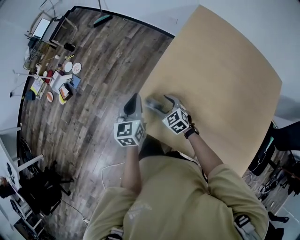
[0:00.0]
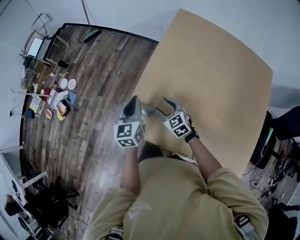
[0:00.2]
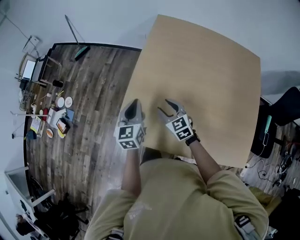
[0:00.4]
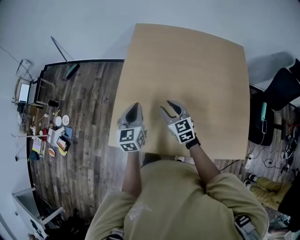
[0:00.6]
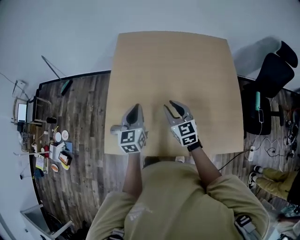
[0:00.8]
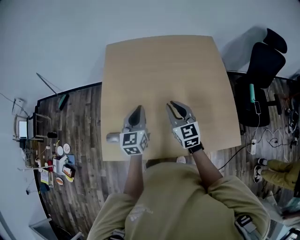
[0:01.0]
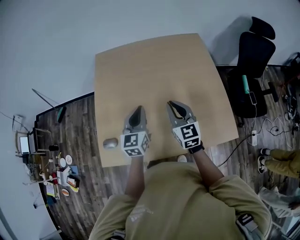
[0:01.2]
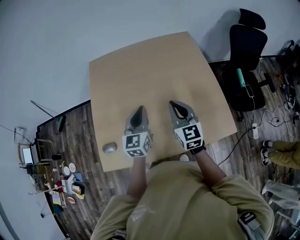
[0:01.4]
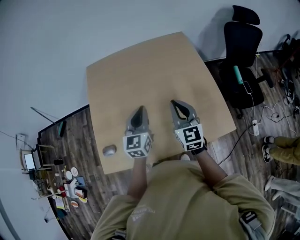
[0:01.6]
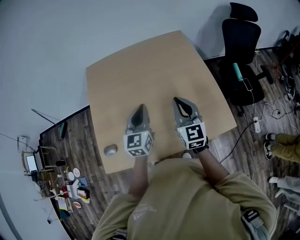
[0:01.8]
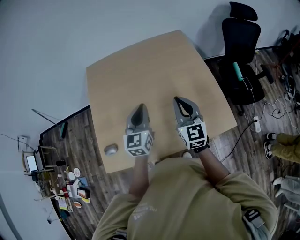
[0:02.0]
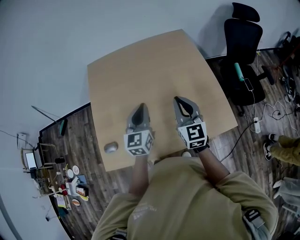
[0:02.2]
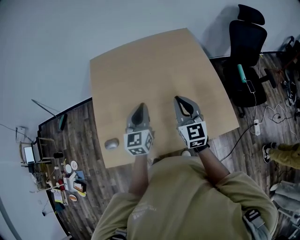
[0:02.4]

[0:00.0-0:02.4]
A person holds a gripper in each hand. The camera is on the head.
0:00.0 to 0:01.2: Both grippers are carried roughly 40 cm. The left gripper changes its angle by roughly 40 degrees, while the right gripper tilts its fingers about 30 degrees upward, and closes.
0:01.2 to 0:02.4: Both grippers move to the right, approximately 5 cm.

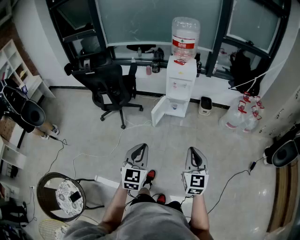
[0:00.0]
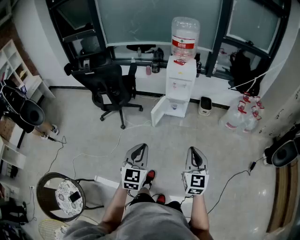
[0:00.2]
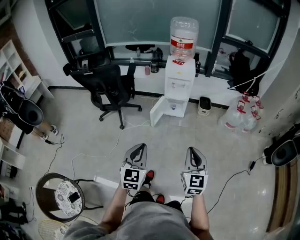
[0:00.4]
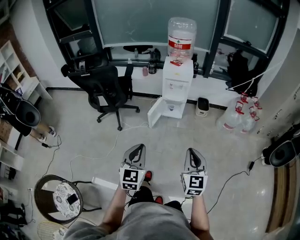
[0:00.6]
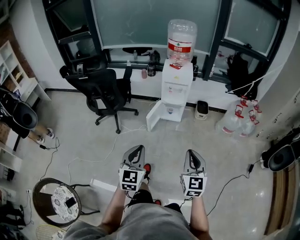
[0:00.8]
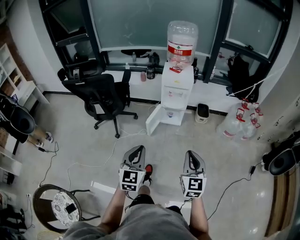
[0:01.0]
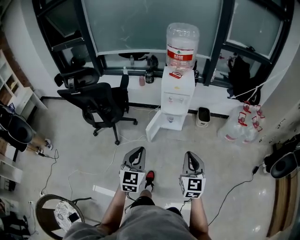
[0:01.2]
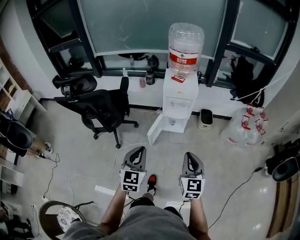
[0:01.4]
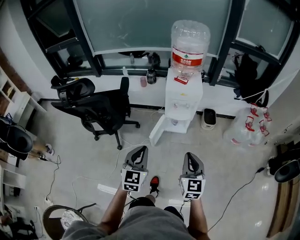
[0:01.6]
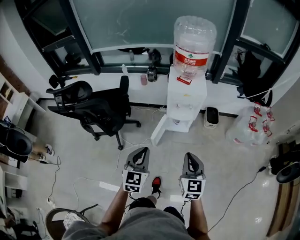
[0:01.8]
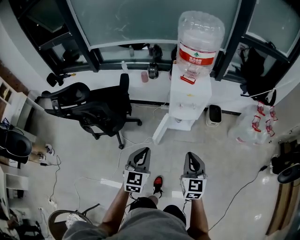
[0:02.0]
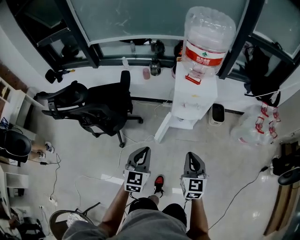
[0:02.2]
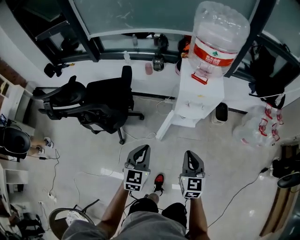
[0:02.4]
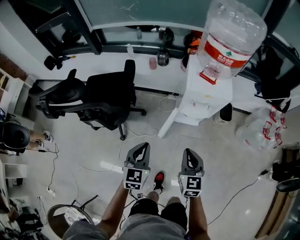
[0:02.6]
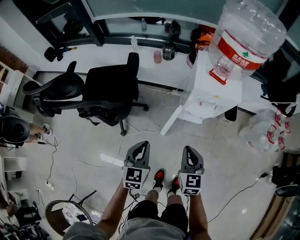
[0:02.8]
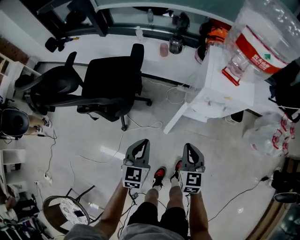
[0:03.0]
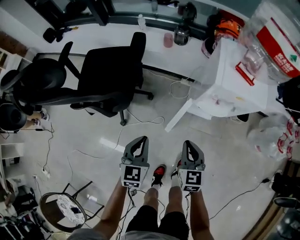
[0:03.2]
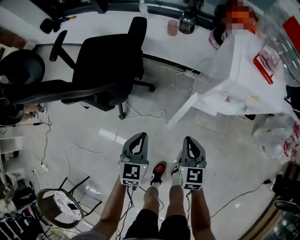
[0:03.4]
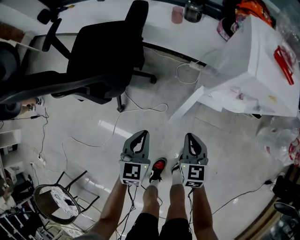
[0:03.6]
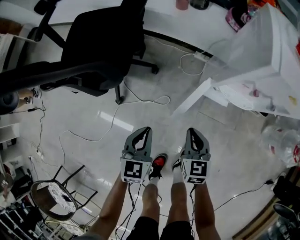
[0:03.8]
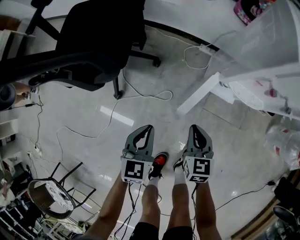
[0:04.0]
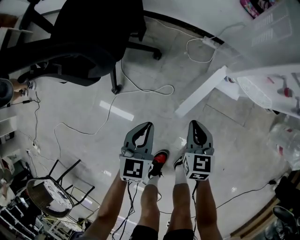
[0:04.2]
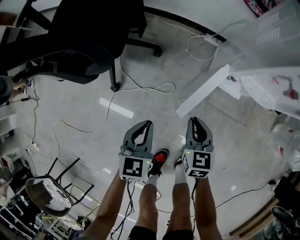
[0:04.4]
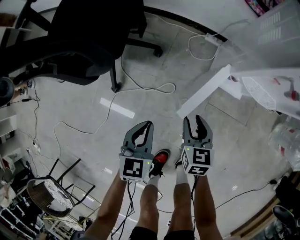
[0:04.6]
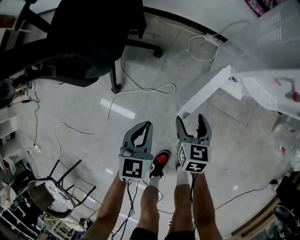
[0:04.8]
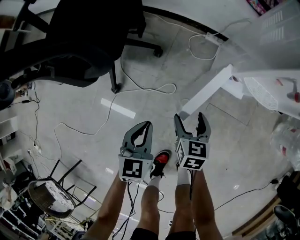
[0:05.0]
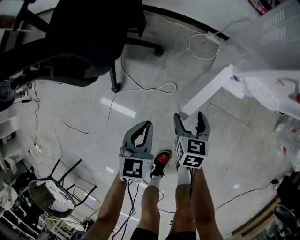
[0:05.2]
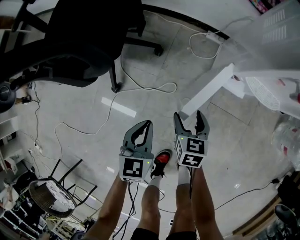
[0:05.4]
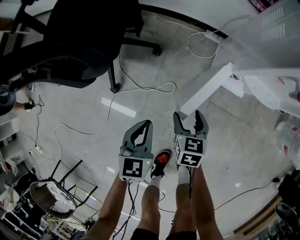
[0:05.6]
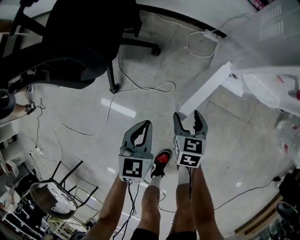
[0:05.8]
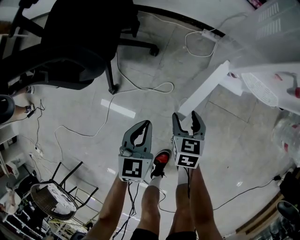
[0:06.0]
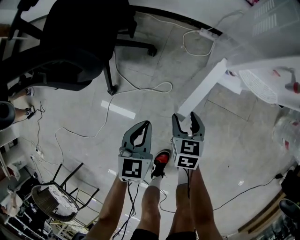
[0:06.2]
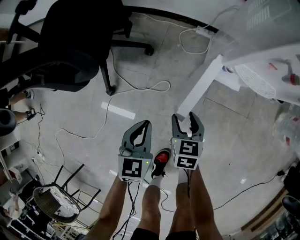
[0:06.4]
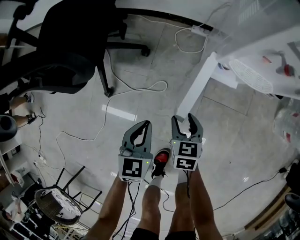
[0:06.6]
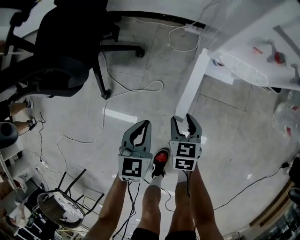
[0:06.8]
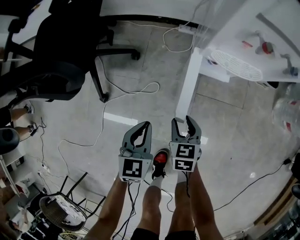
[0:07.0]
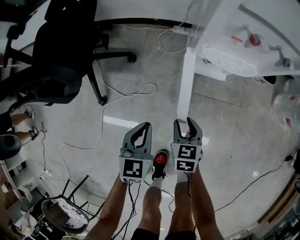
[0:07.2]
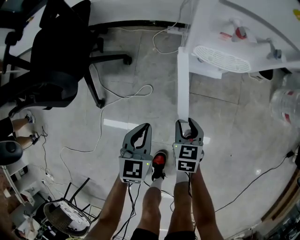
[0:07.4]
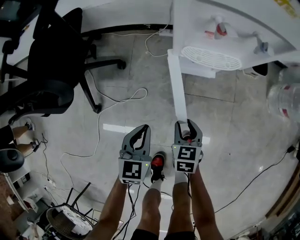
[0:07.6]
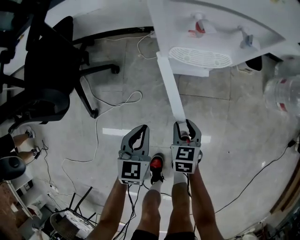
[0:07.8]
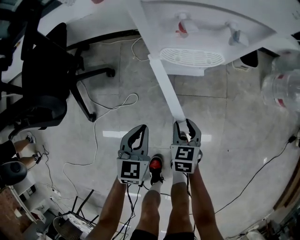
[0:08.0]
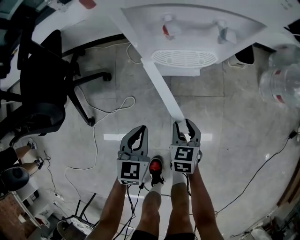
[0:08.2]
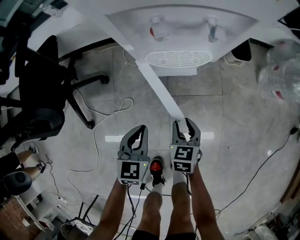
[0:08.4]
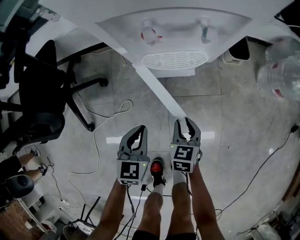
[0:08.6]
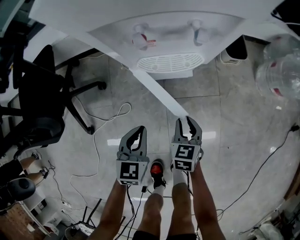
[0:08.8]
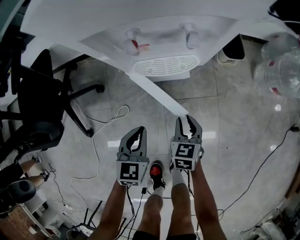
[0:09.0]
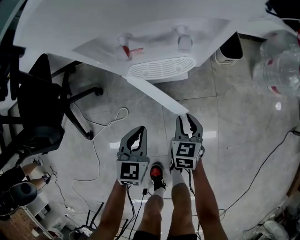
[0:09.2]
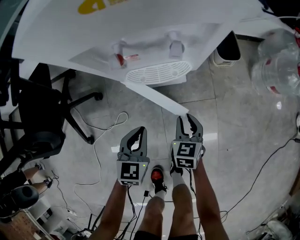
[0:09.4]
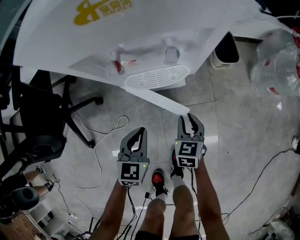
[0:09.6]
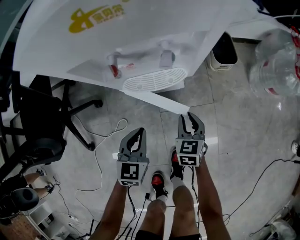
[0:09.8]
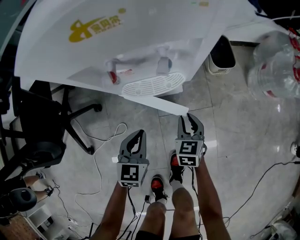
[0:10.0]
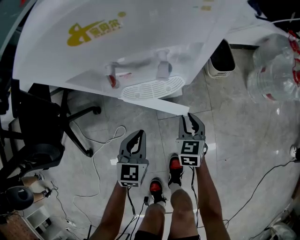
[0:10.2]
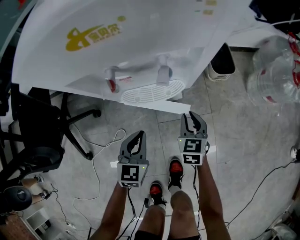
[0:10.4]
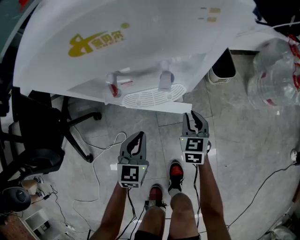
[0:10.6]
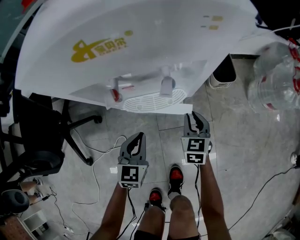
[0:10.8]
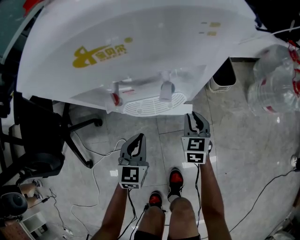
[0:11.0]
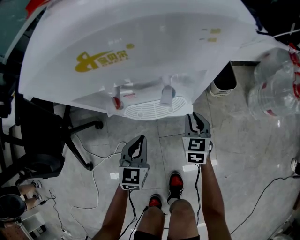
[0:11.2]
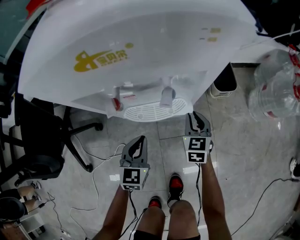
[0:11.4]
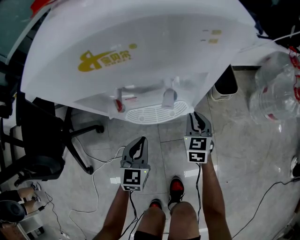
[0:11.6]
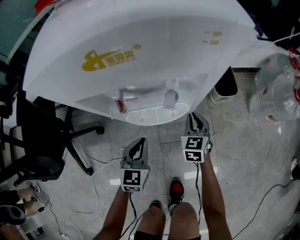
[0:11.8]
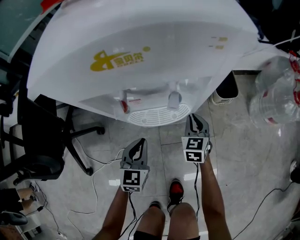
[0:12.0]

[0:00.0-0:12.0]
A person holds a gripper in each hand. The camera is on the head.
0:00.0 to 0:01.6: The two grippers go about 30 cm forward.
0:01.6 to 0:03.0: The left gripper is displaced downward, forward and to the left by roughly 30 cm; the right gripper goes approximately 35 cm forward, downward and to the left.
0:03.0 to 0:04.4: Both grippers move downward, roughly 35 cm.
0:04.4 to 0:06.0: The right gripper shifts about 5 cm downward, and opens.
0:06.0 to 0:07.6: The right gripper heads to the right and backward, covering about 15 cm, while the left gripper shifts some 15 cm to the right.
0:07.6 to 0:09.0: Both grippers travel together to the right and forward, roughly 15 cm.
0:09.0 to 0:10.4: The left gripper heads forward, covering roughly 10 cm. Meanwhile the right gripper shifts roughly 10 cm forward and to the right.
0:10.4 to 0:12.0: The left gripper shifts by some 5 cm; the right gripper moves forward, approximately 10 cm.

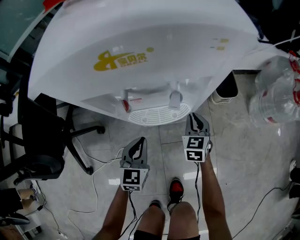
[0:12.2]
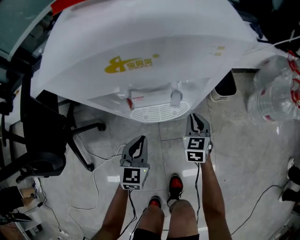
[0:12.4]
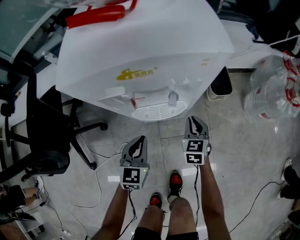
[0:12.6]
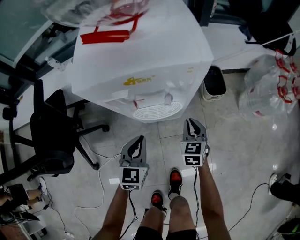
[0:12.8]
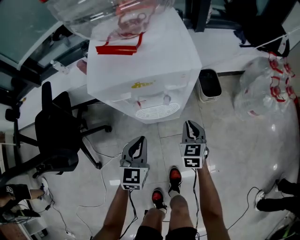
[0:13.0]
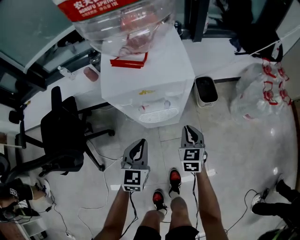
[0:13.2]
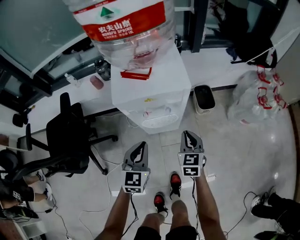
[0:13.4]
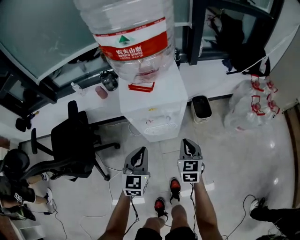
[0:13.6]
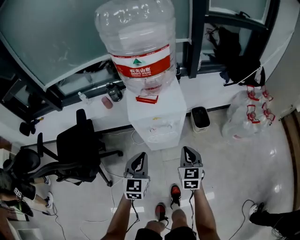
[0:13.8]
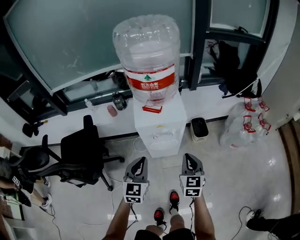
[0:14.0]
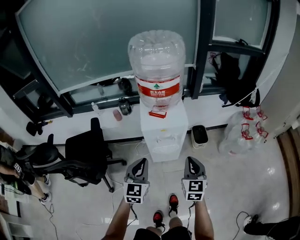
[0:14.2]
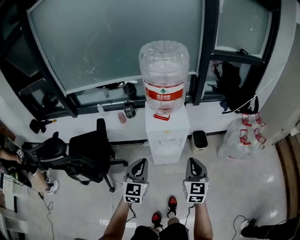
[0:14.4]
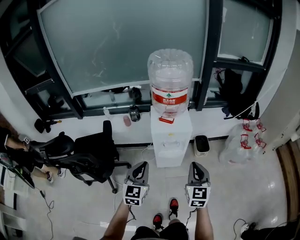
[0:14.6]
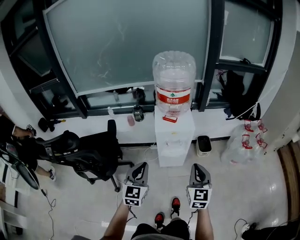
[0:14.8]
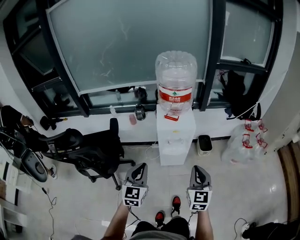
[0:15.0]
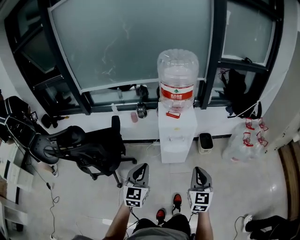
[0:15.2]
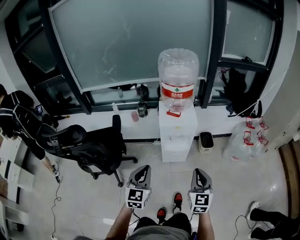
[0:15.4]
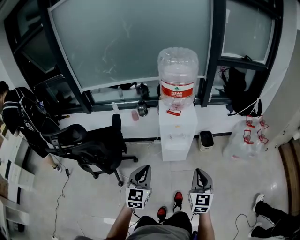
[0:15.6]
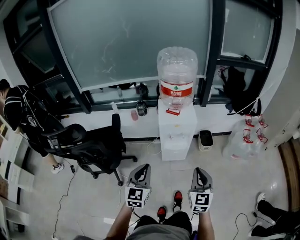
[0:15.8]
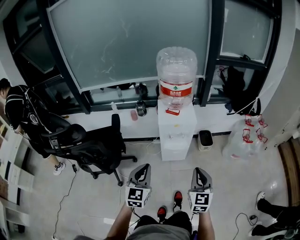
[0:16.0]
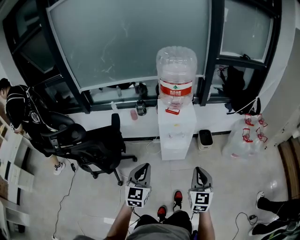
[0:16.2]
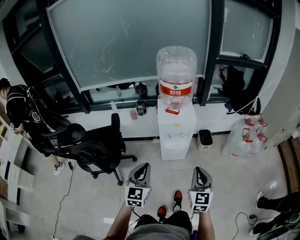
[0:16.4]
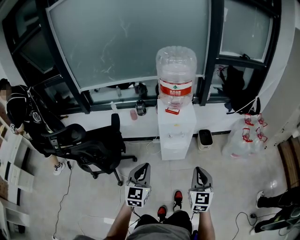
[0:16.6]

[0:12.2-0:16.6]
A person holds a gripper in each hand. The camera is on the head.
0:12.2 to 0:13.6: The grippers both shift upward by about 35 cm.
0:13.6 to 0:15.2: The grippers both shift upward and backward by roughly 35 cm.
0:15.2 to 0:16.6: The grippers make only small movements.

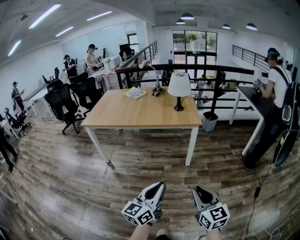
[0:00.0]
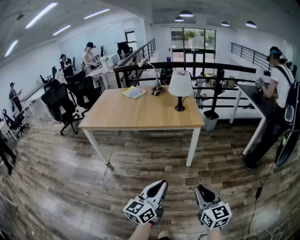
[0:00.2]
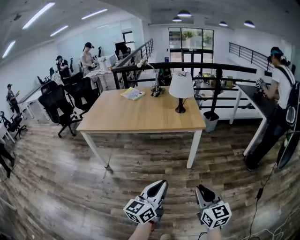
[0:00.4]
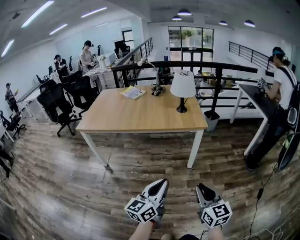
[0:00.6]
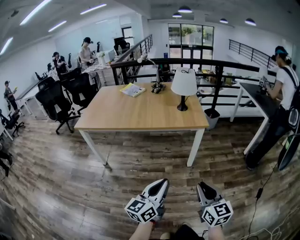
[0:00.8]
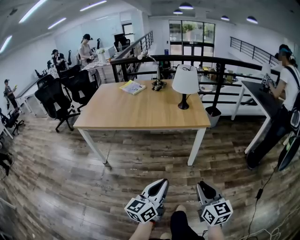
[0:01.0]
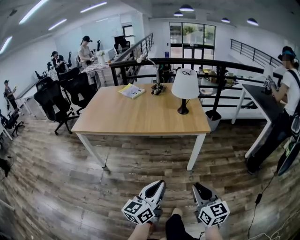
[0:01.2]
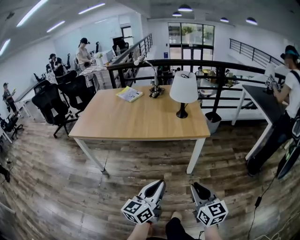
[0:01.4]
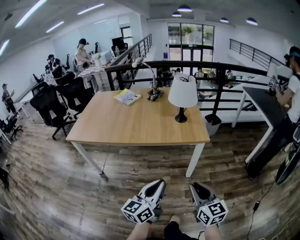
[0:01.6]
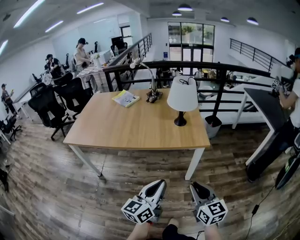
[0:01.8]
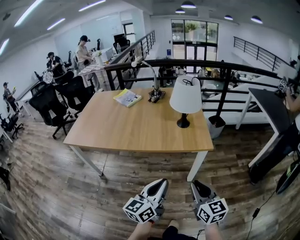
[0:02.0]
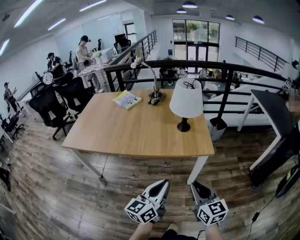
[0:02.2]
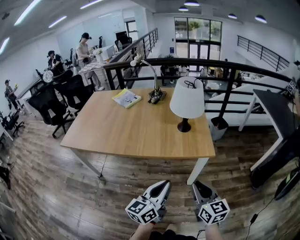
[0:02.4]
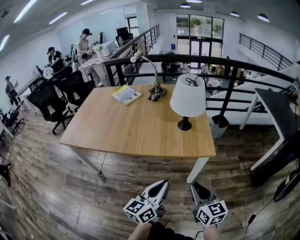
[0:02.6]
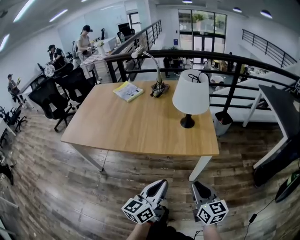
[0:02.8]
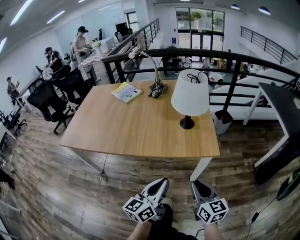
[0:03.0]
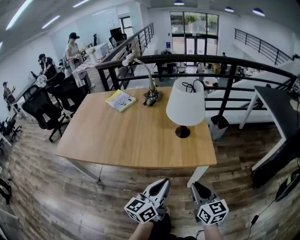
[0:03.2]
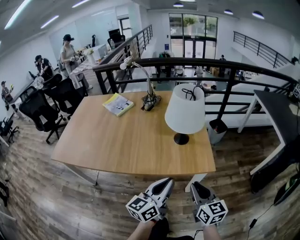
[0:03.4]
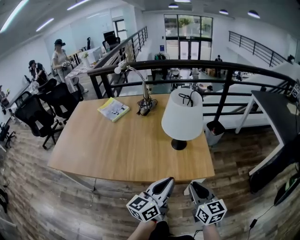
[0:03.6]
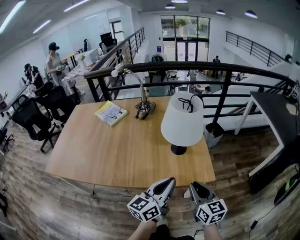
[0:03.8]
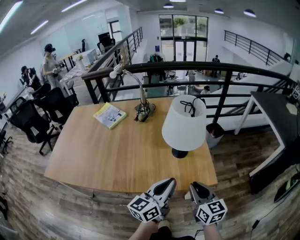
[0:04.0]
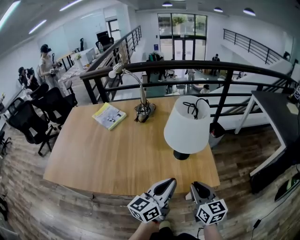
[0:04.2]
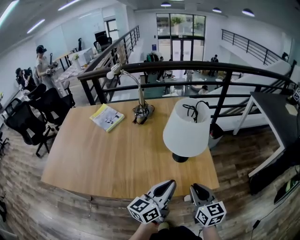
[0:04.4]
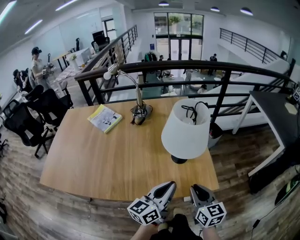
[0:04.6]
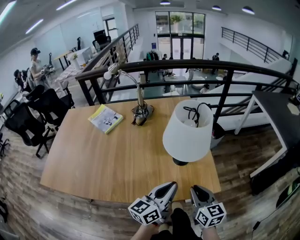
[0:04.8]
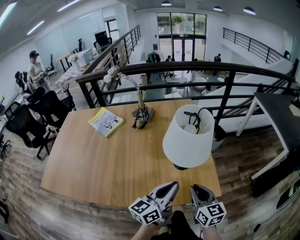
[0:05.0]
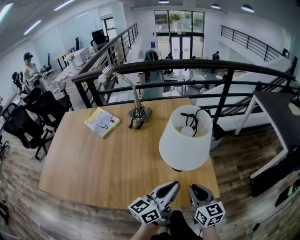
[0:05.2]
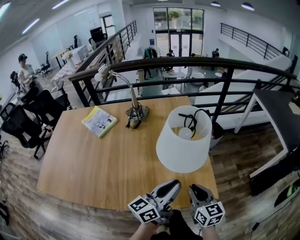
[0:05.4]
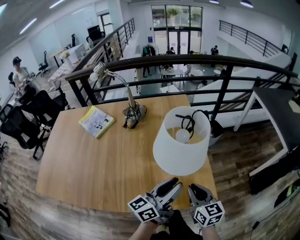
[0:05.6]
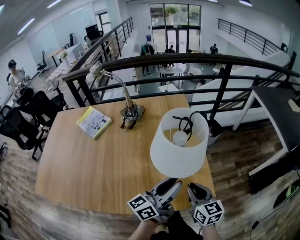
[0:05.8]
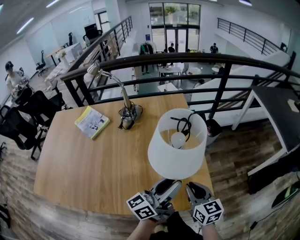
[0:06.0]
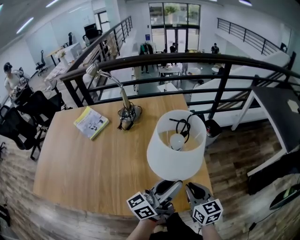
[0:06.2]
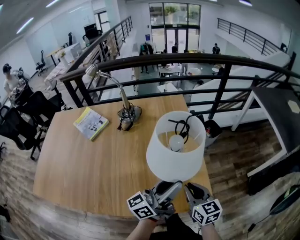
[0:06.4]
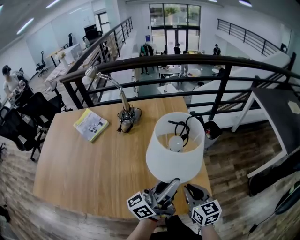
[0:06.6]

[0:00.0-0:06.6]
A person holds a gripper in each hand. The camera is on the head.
0:00.0 to 0:01.6: Both grippers travel together forward, approximately 25 cm.
0:01.6 to 0:03.2: Both grippers move forward, approximately 25 cm.
0:03.2 to 0:05.0: Both grippers travel together forward, some 20 cm.
0:05.0 to 0:06.6: Both grippers travel together forward, roughly 10 cm. The left gripper rotates roughly 30 degrees.
